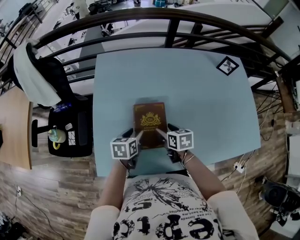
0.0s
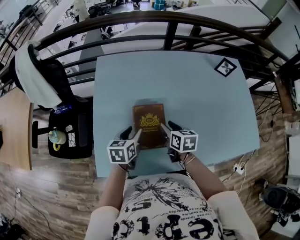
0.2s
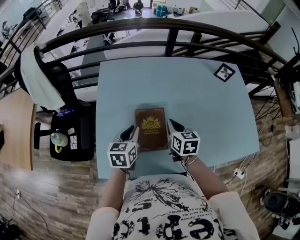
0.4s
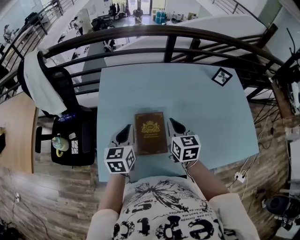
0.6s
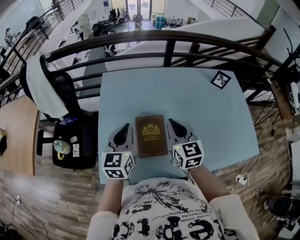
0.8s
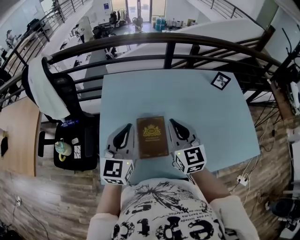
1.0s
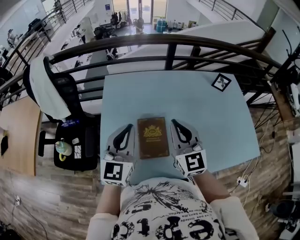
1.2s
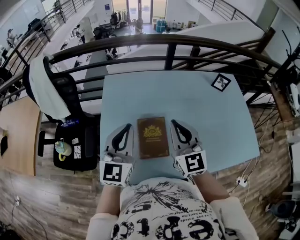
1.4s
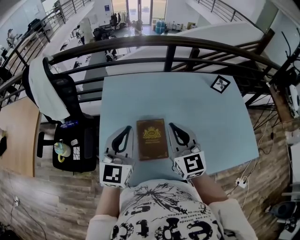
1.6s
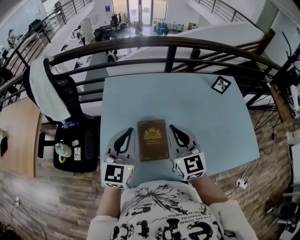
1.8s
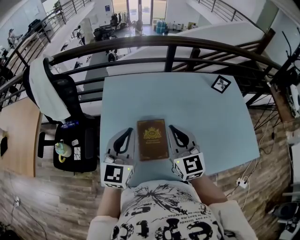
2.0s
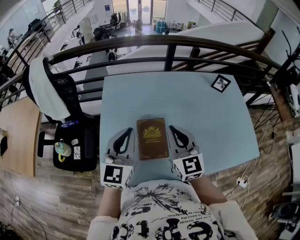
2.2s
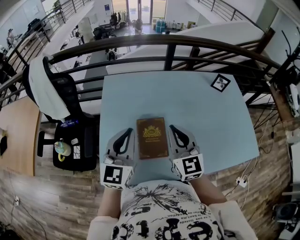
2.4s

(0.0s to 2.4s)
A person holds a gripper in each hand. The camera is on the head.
0.0s - 1.2s: The two grippers go approximately 30 cm upward. The left gripper points its fingers some 50 degrees further upward, and closes; the right gripper points its fingers approximately 50 degrees further upward, and closes up.
1.2s - 2.4s: The grippers stay close to where they were, moving slightly.

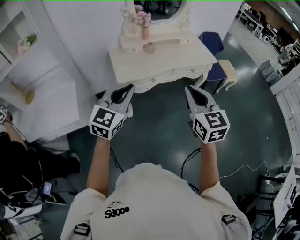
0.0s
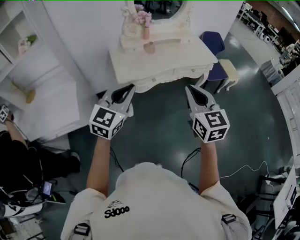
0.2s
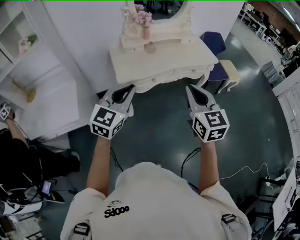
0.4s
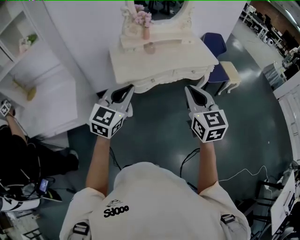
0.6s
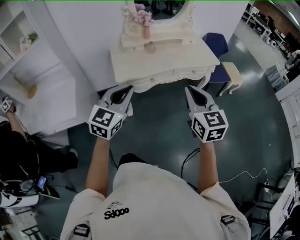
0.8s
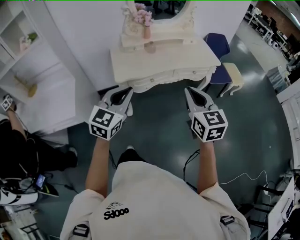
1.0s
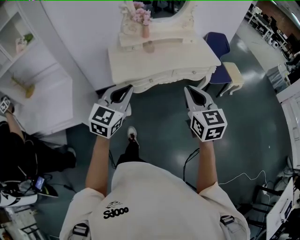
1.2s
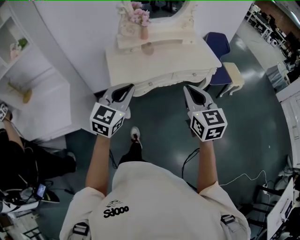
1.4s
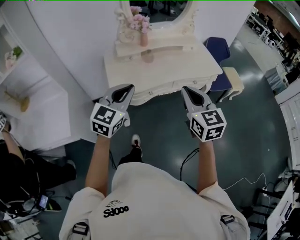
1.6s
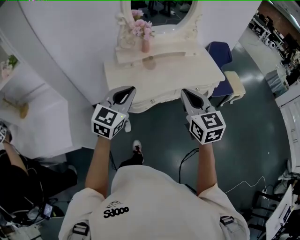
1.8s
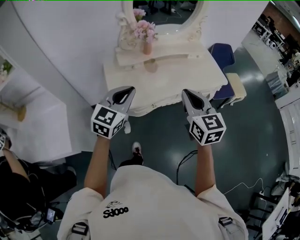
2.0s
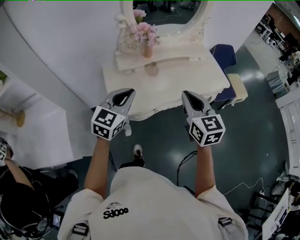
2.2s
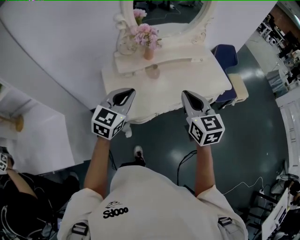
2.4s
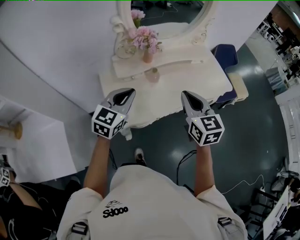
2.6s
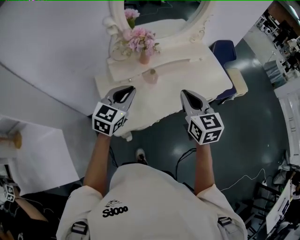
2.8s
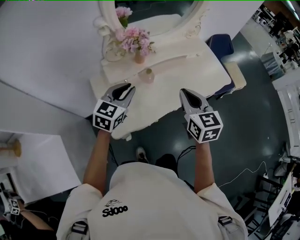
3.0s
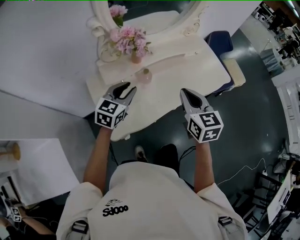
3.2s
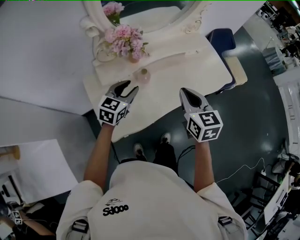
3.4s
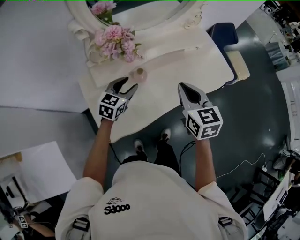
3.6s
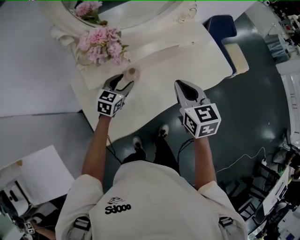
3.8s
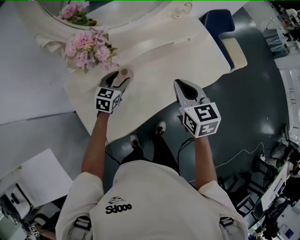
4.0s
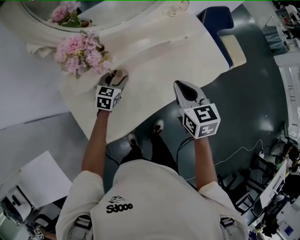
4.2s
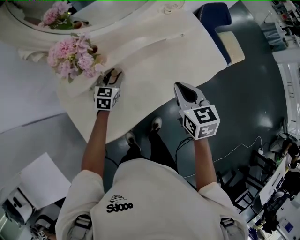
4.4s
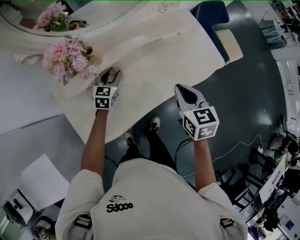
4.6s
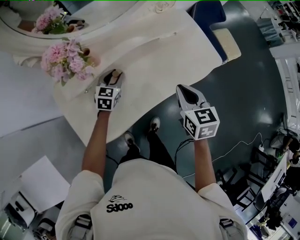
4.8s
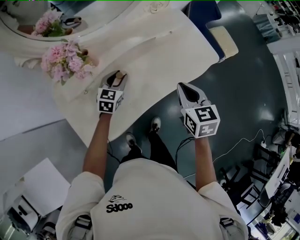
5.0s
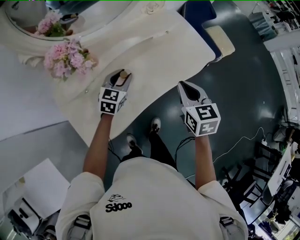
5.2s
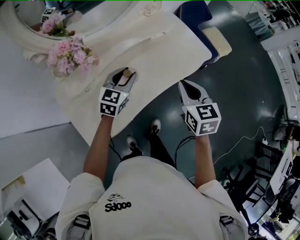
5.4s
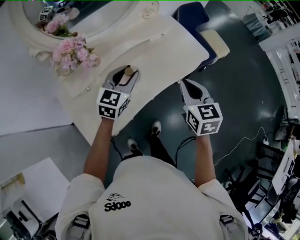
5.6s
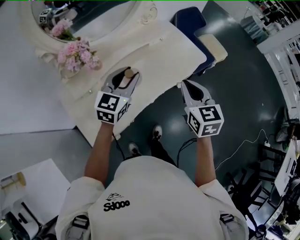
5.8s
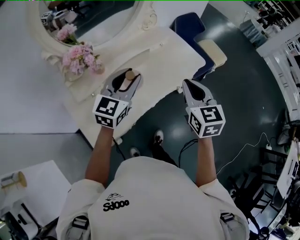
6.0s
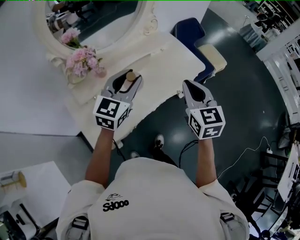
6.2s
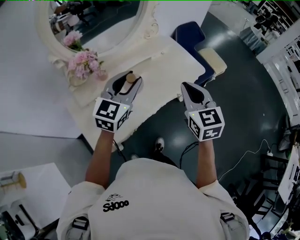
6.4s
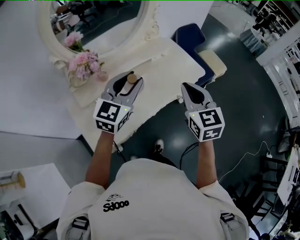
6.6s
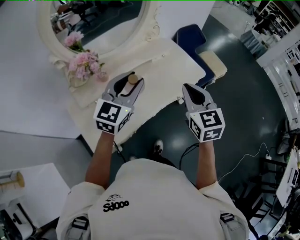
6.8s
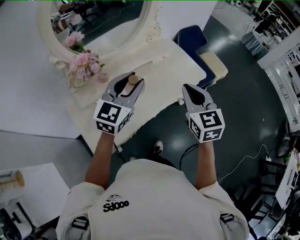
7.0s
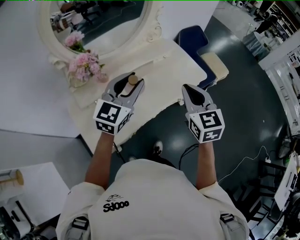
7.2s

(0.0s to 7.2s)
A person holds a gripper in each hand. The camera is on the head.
0.0s - 1.4s: The grippers both shift forward by roughly 10 cm.
1.4s - 2.8s: The two grippers go about 35 cm forward.
2.8s - 4.4s: The left gripper shifts about 35 cm forward and downward, and opens; the right gripper moves forward, downward and to the right, some 25 cm.
4.4s - 5.8s: The left gripper shifts some 30 cm upward, to the right and backward, and rotates roughly 30 degrees. Meanwhile the right gripper travels upward, backward and to the right by some 15 cm.
5.8s - 7.2s: The grippers both shift upward by approximately 5 cm.

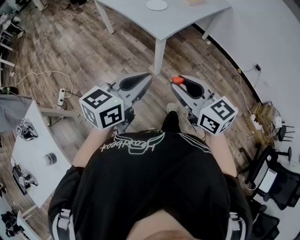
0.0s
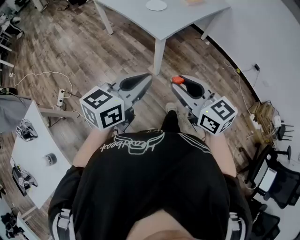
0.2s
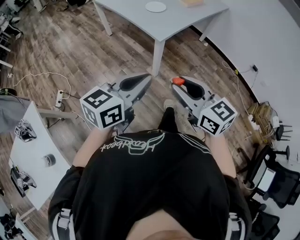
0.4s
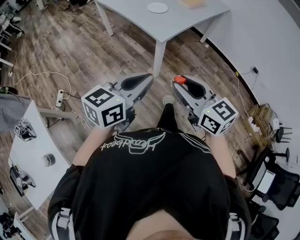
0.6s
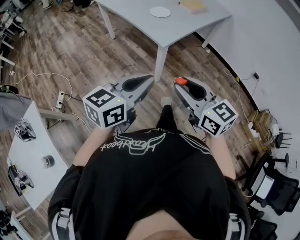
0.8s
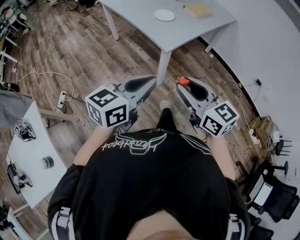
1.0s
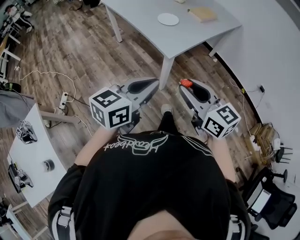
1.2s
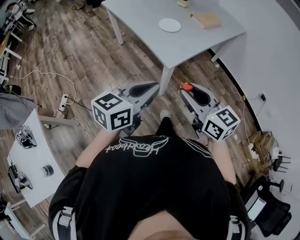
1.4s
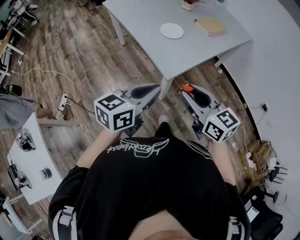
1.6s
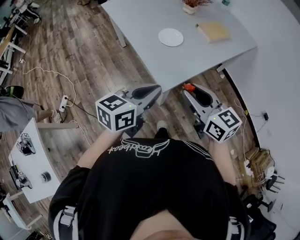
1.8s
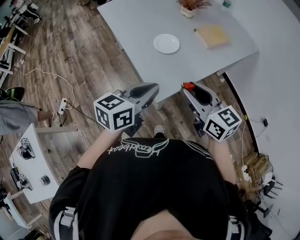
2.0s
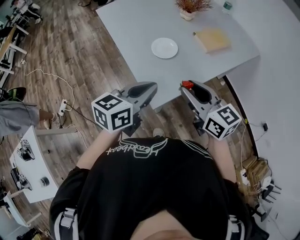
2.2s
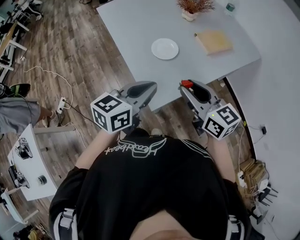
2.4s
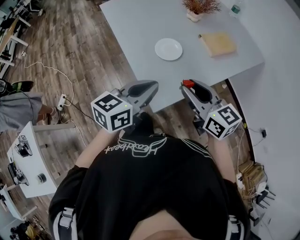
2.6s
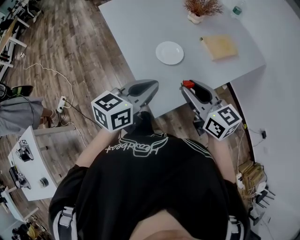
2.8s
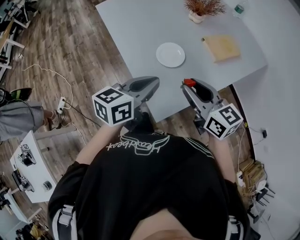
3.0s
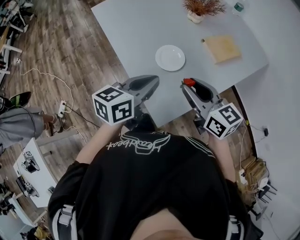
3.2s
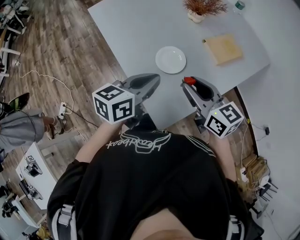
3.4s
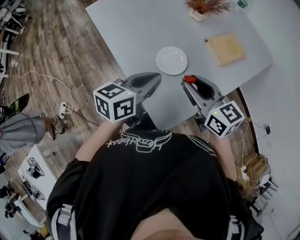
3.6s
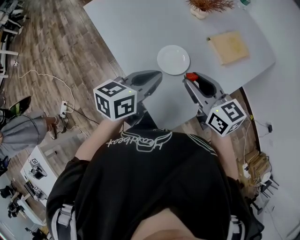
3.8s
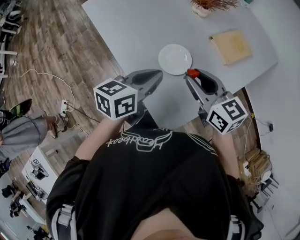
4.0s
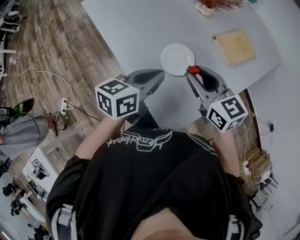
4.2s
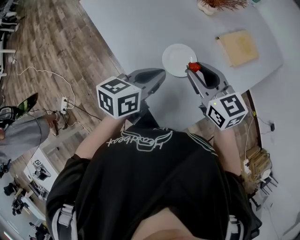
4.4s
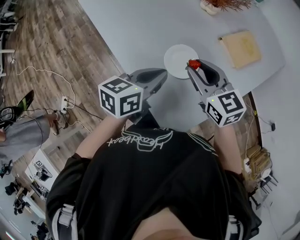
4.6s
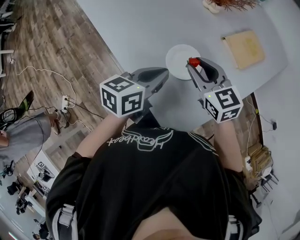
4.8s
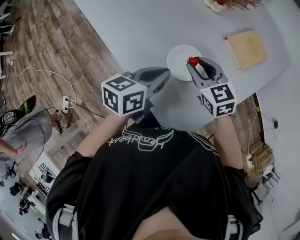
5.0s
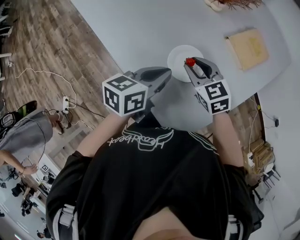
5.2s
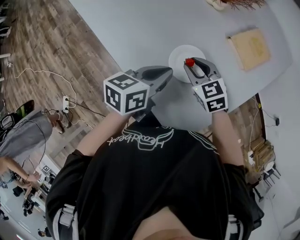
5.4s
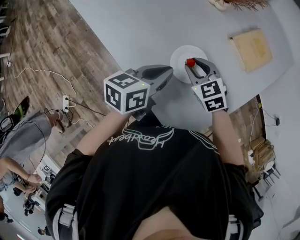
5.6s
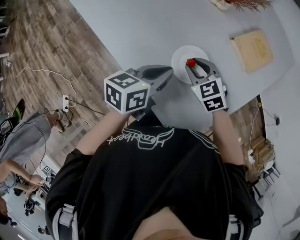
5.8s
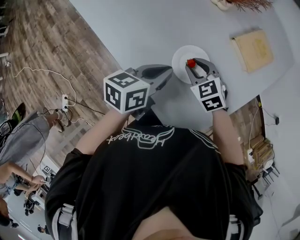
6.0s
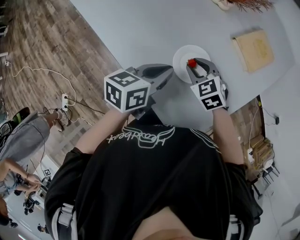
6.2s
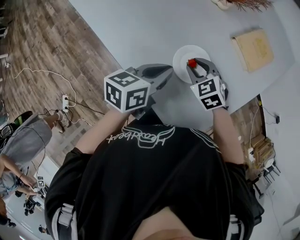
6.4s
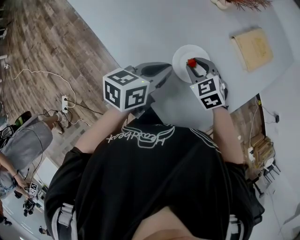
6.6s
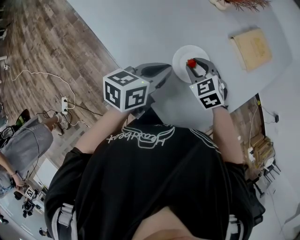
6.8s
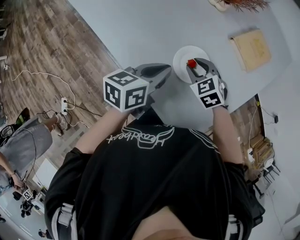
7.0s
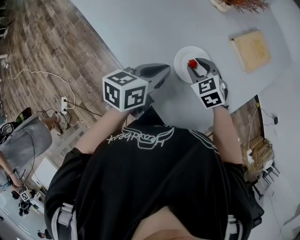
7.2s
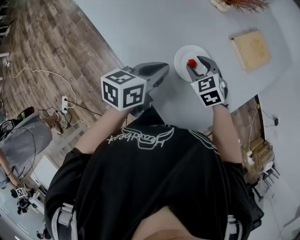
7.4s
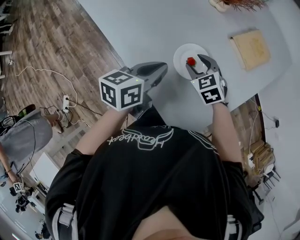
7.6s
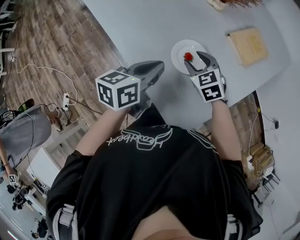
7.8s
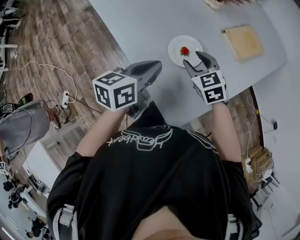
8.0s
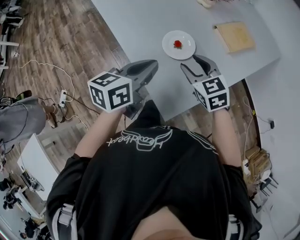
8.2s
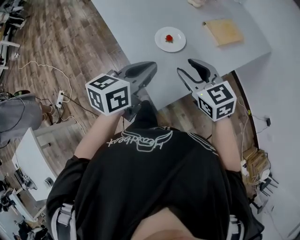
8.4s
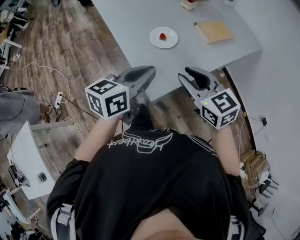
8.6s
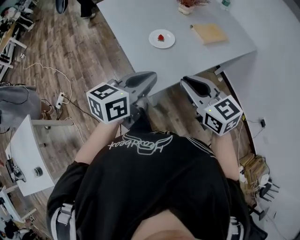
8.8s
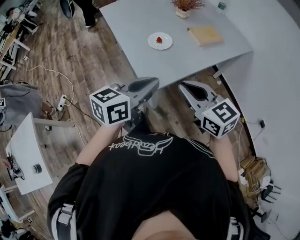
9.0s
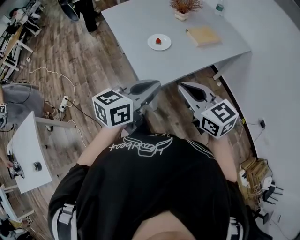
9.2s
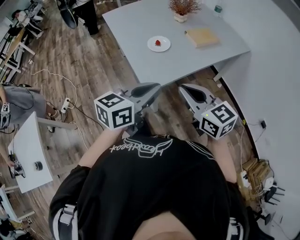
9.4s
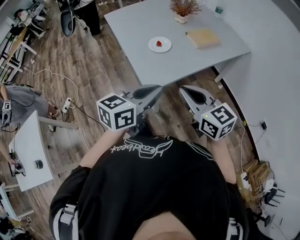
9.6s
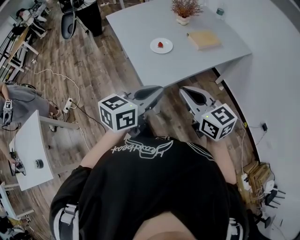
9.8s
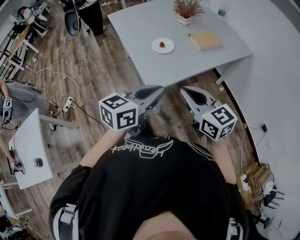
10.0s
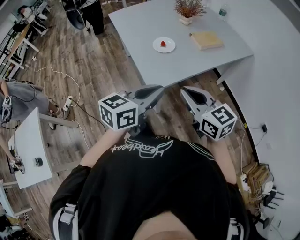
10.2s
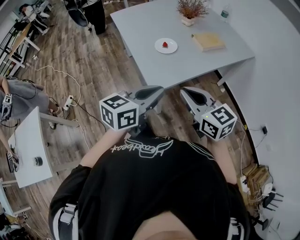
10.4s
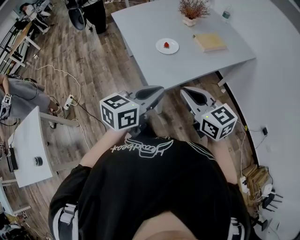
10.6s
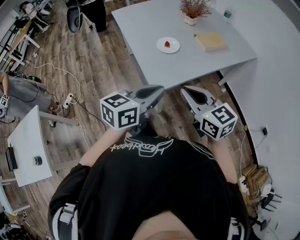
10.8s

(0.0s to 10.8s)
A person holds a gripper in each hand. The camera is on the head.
0.0s - 1.6s: The grippers both shift forward by some 25 cm.
1.6s - 3.0s: The two grippers go approximately 25 cm forward.
3.0s - 4.6s: The two grippers go about 20 cm forward and downward.
4.6s - 6.2s: The left gripper goes approximately 5 cm downward. The right gripper is displaced downward by roughly 15 cm, and rotates about 30 degrees.
6.2s - 7.8s: The grippers make only small movements.
7.8s - 9.2s: The left gripper travels backward, to the right and upward by some 40 cm, and turns by approximately 20 degrees. The right gripper moves backward and upward, some 50 cm, angles its fingers upward, by approximately 30 degrees, and closes up.
9.2s - 10.8s: The grippers move only a little.

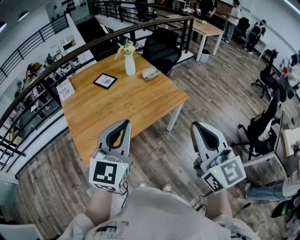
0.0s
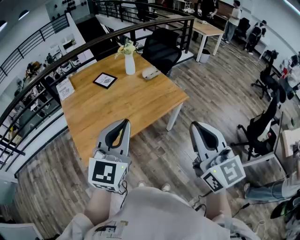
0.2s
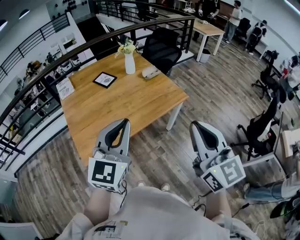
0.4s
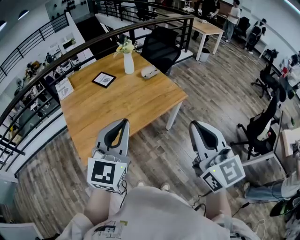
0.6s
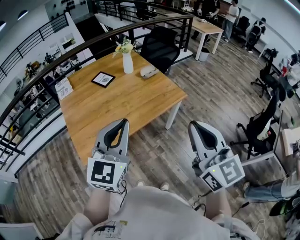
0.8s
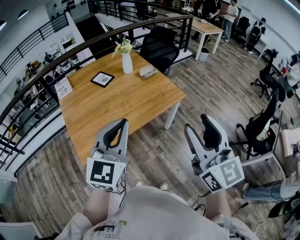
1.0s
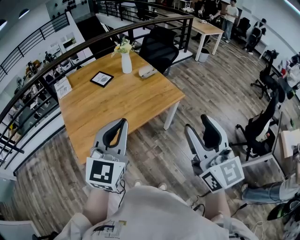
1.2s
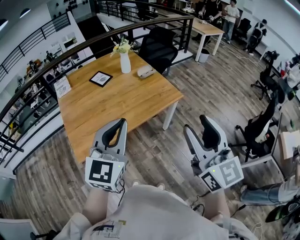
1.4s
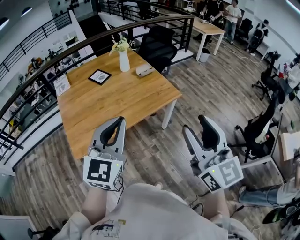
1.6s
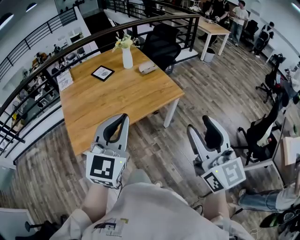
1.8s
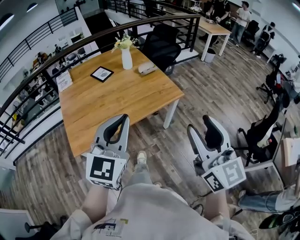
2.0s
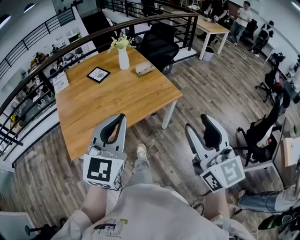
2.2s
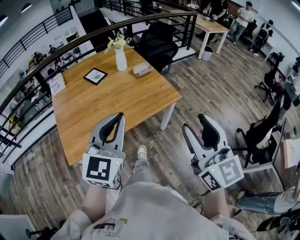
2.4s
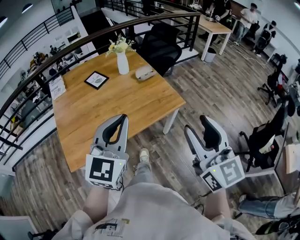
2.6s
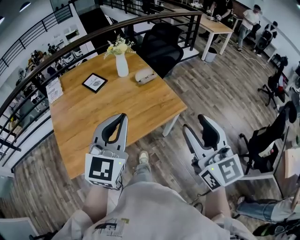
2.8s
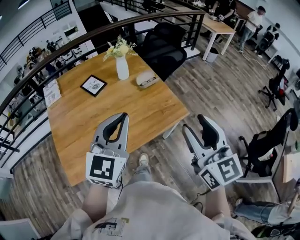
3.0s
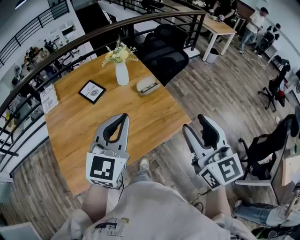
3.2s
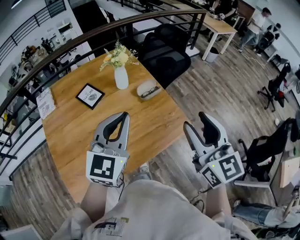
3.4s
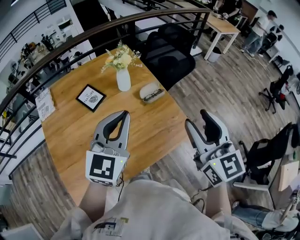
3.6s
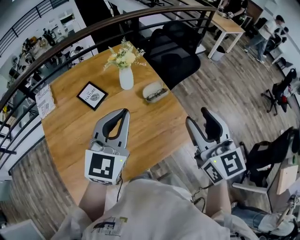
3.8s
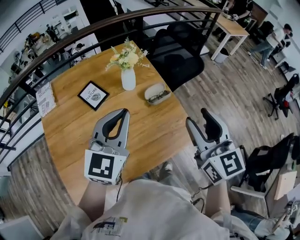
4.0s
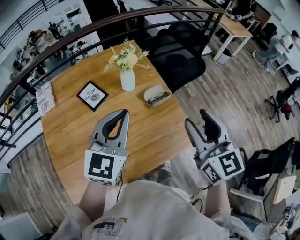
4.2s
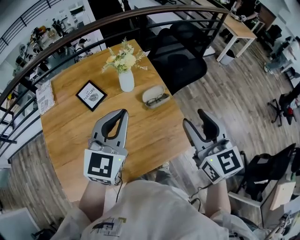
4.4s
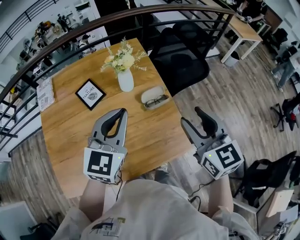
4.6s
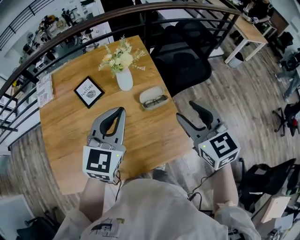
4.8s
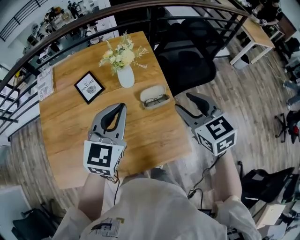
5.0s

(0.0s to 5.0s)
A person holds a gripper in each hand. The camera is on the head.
0.0s - 1.6s: The grippers both shift to the right by approximately 5 cm. The right gripper opens up.
1.6s - 3.4s: The two grippers travel together, forward, some 40 cm.
3.4s - 5.0s: Both grippers travel together forward and downward, approximately 25 cm. The right gripper turns by about 40 degrees.
